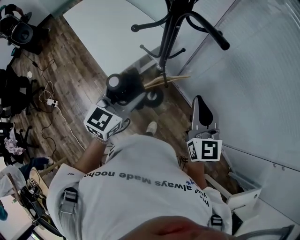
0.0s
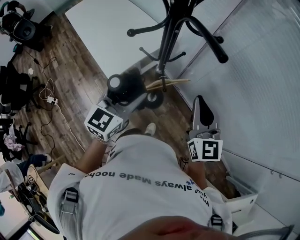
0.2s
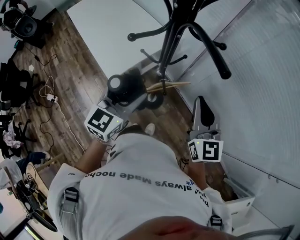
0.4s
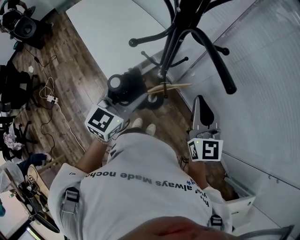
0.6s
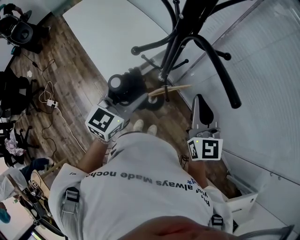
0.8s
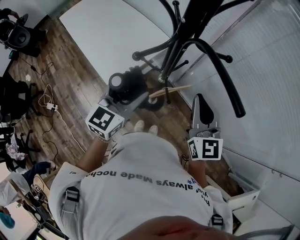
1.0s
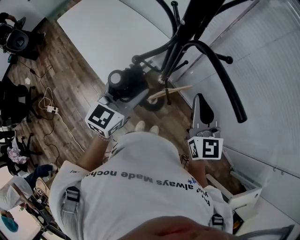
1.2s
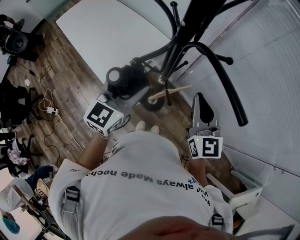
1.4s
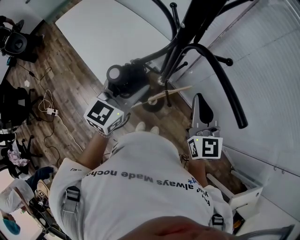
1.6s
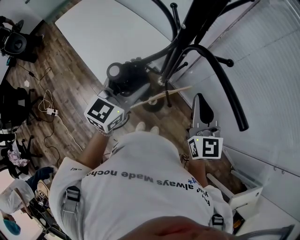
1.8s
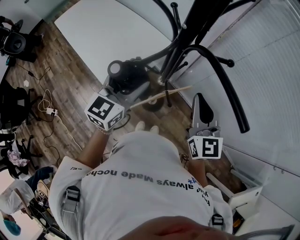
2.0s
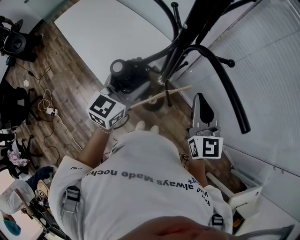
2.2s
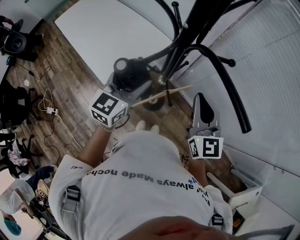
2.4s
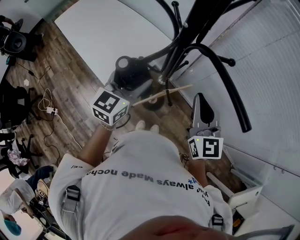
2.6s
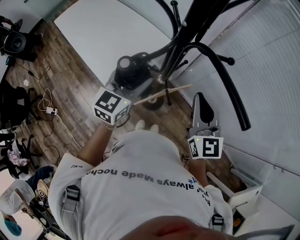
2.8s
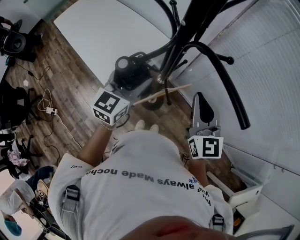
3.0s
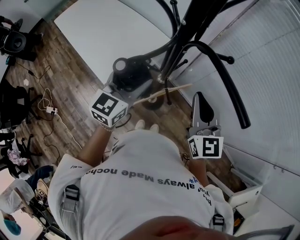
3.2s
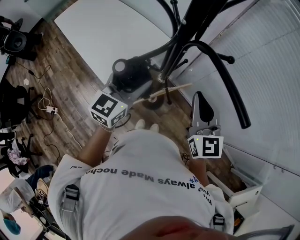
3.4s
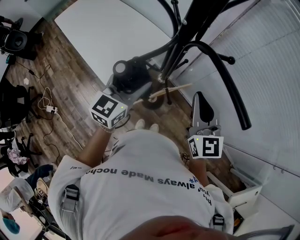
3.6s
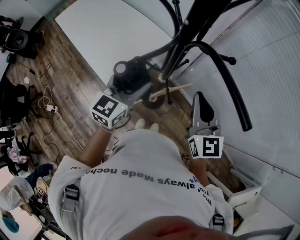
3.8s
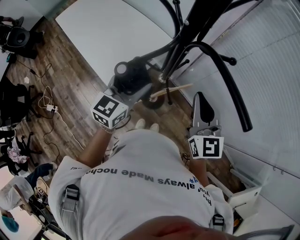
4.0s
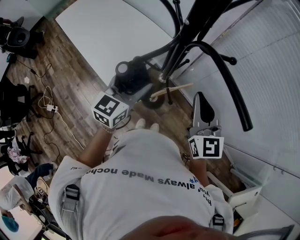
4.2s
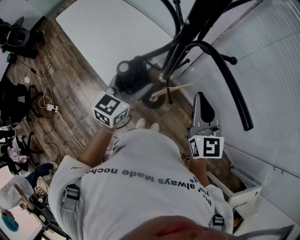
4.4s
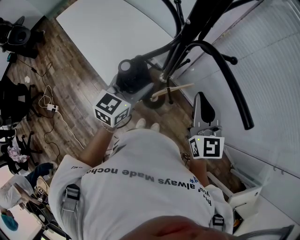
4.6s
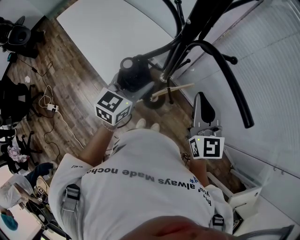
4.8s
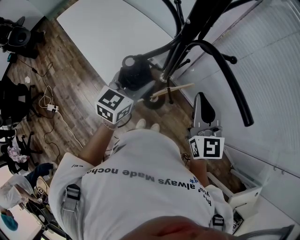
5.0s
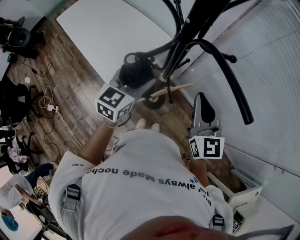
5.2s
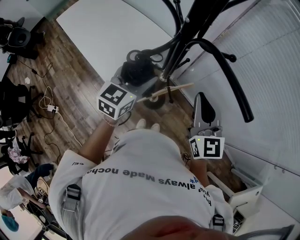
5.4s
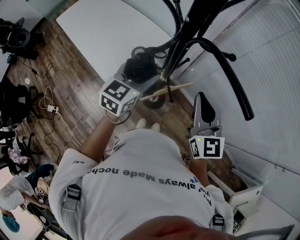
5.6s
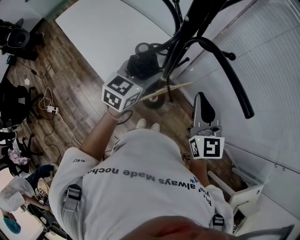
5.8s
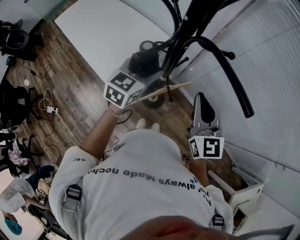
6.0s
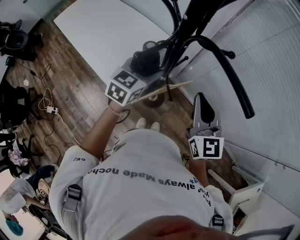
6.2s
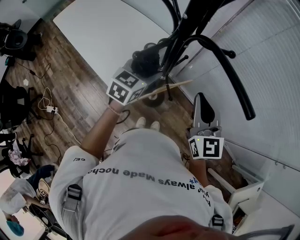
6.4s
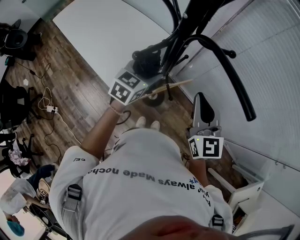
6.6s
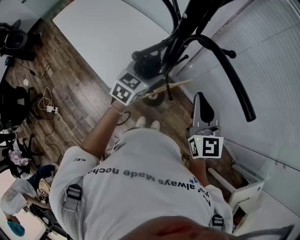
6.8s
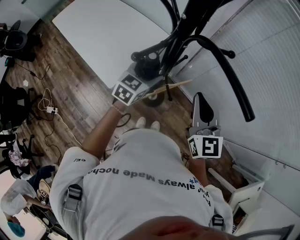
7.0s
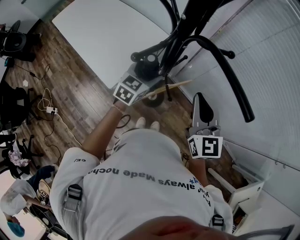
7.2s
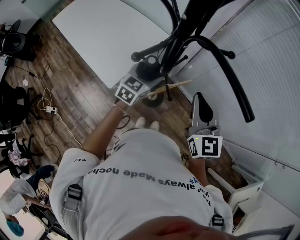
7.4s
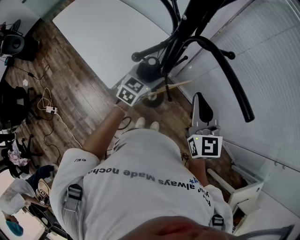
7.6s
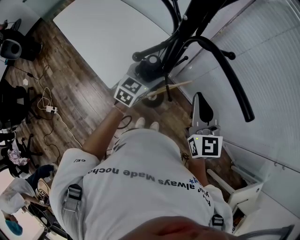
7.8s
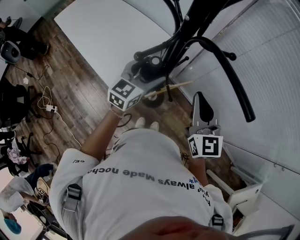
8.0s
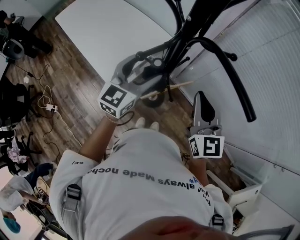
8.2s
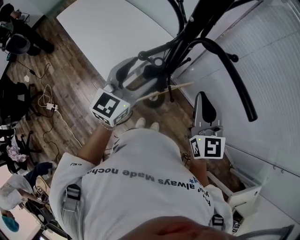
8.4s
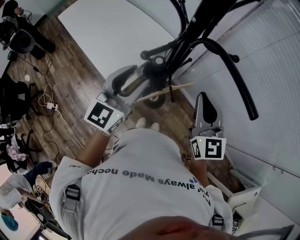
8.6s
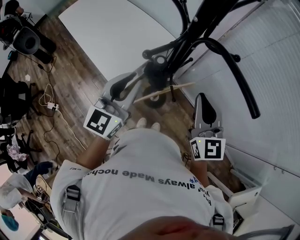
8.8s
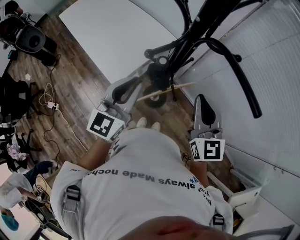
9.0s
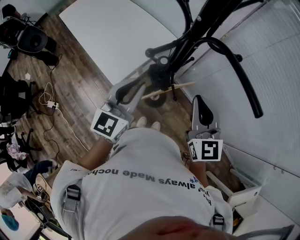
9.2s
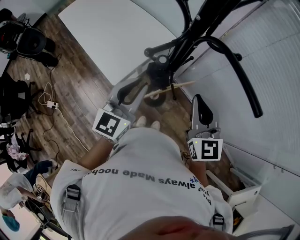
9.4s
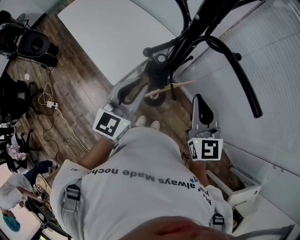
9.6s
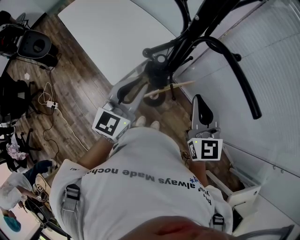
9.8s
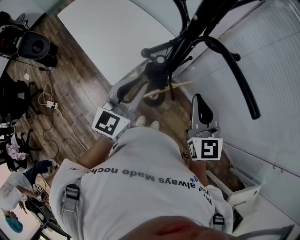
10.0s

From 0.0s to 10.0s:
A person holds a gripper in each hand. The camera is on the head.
From 0.0s to 1.4s: The grippers both shift forward and to the left by some 15 cm.
From 1.4s to 4.2s: The grippers make only small movements.
From 4.2s to 5.8s: There are only small adjustments of the grippers.
From 5.8s to 7.2s: The left gripper travels downward by roughly 10 cm.
From 7.2s to 8.6s: The left gripper goes roughly 20 cm upward and backward, and rotates roughly 30 degrees.
From 8.6s to 10.0s: There are only small adjustments of the grippers.

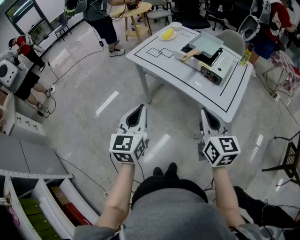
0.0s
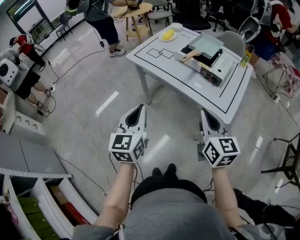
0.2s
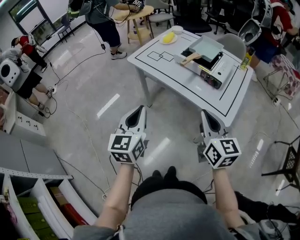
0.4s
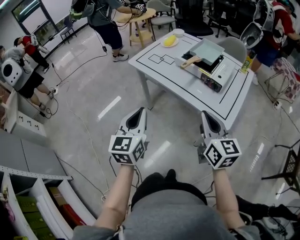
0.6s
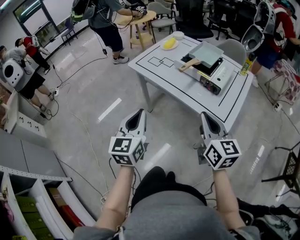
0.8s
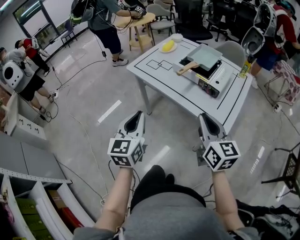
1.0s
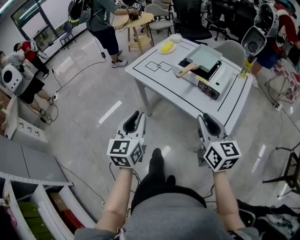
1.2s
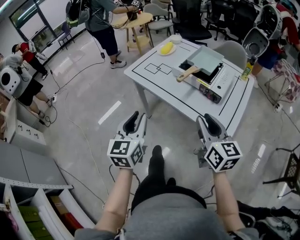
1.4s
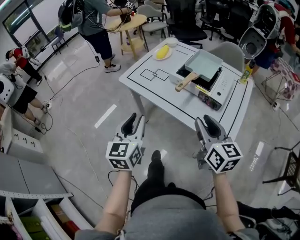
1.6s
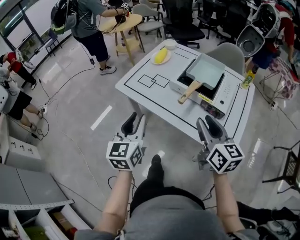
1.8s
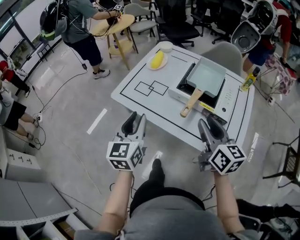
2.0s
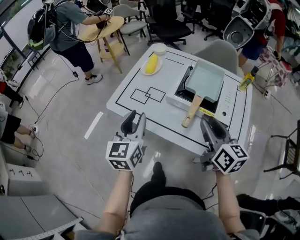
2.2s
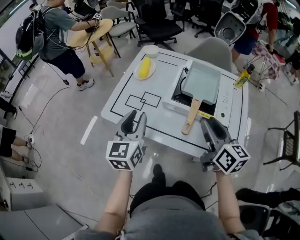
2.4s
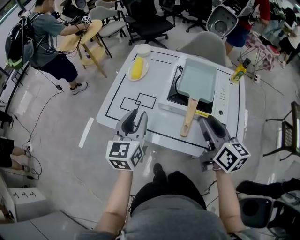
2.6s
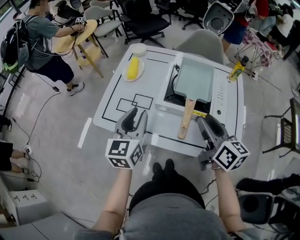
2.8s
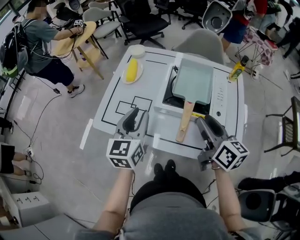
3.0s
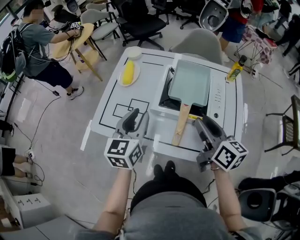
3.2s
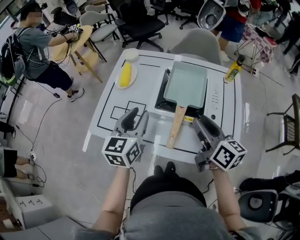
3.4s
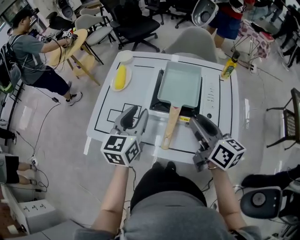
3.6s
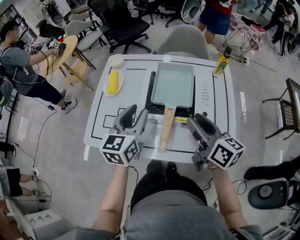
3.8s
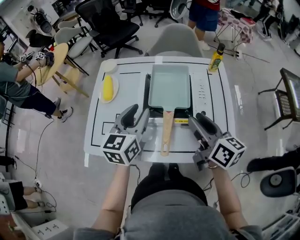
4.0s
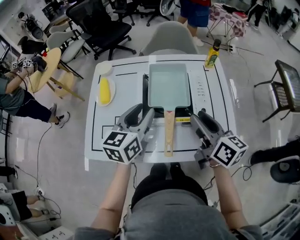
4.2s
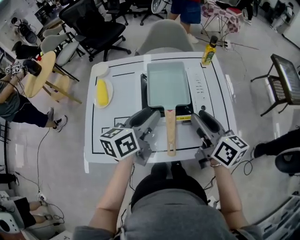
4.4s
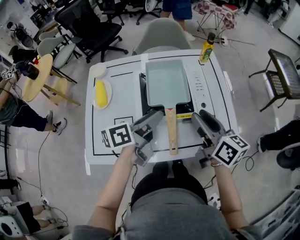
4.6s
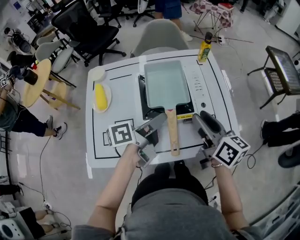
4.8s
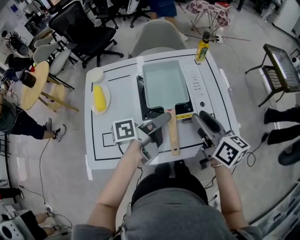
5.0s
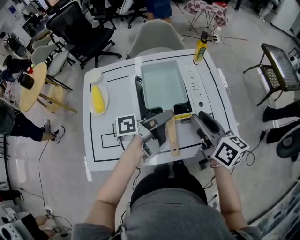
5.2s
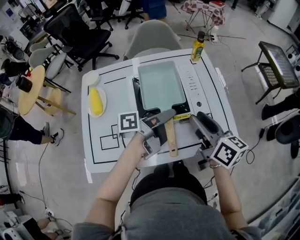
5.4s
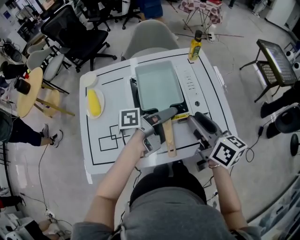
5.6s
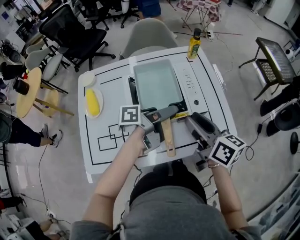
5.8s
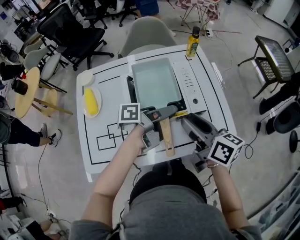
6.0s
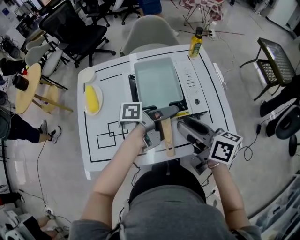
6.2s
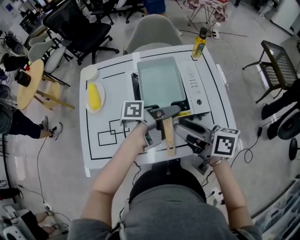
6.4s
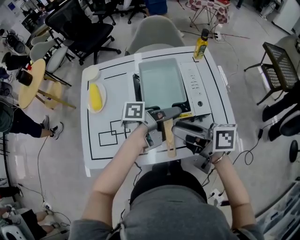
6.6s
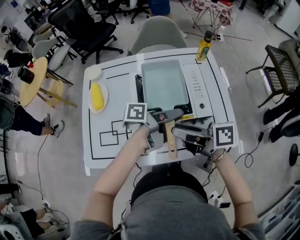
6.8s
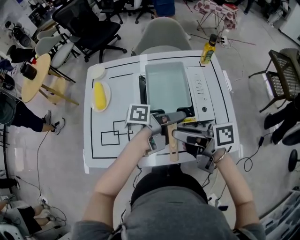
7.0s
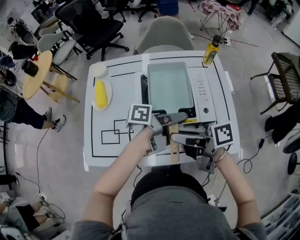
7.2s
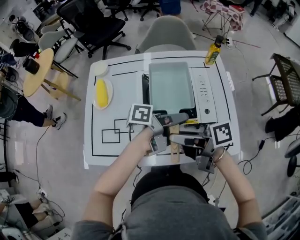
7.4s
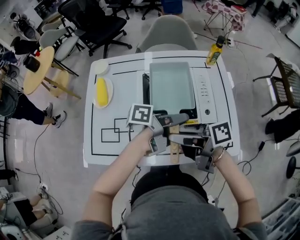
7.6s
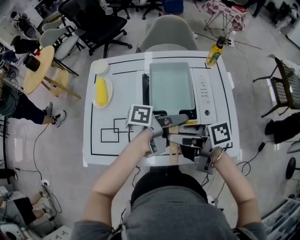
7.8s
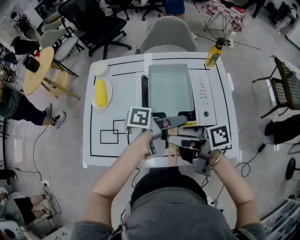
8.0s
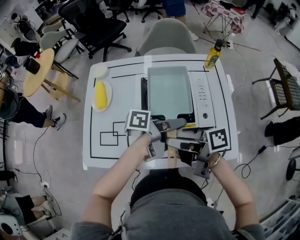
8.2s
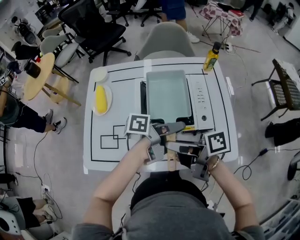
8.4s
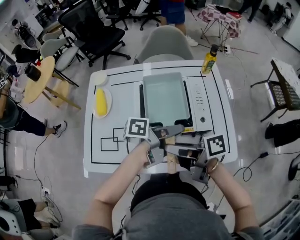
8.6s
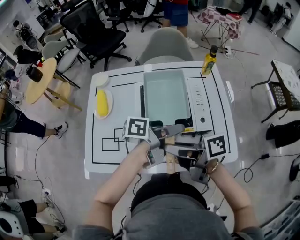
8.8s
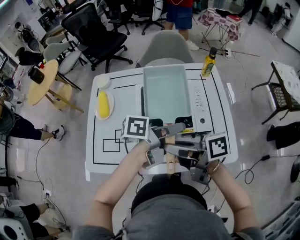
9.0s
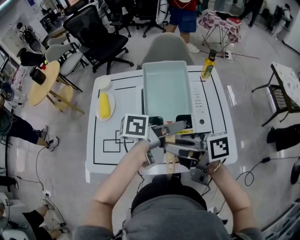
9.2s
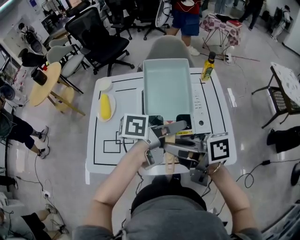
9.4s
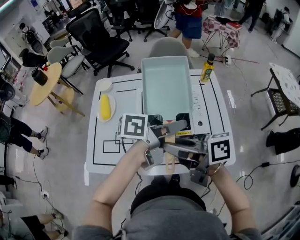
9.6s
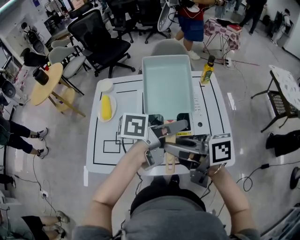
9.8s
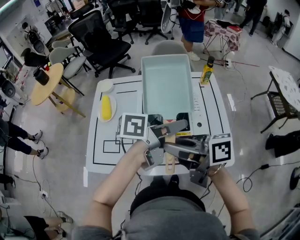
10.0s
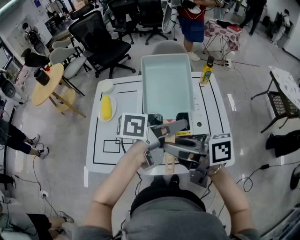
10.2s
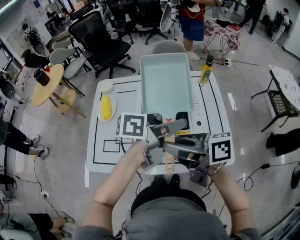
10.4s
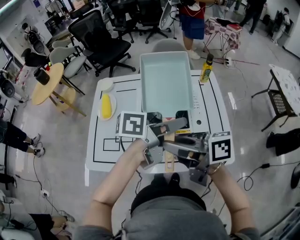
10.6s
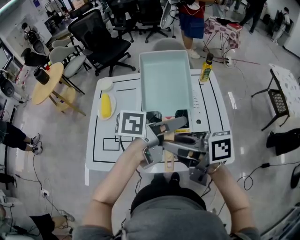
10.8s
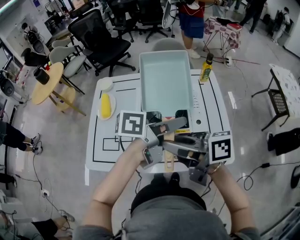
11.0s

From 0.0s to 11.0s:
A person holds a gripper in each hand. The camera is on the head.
From 0.0s to 1.6s: Both grippers move forward, some 10 cm. The right gripper opens up; the left gripper opens up.
From 1.6s to 3.2s: The grippers both shift forward by roughly 25 cm. The right gripper turns by approximately 20 degrees. The left gripper swivels roughly 30 degrees.
From 3.2s to 4.8s: The right gripper turns by about 20 degrees, while the left gripper moves about 15 cm, and rotates approximately 70 degrees.
From 4.8s to 6.2s: The left gripper moves to the right, some 5 cm, and swivels about 30 degrees.
From 6.2s to 7.8s: The right gripper changes place by roughly 10 cm, and rotates roughly 50 degrees.
From 7.8s to 9.4s: Both grippers travel together upward, some 5 cm.
From 9.4s to 11.0s: The grippers stay close to where they were, moving slightly.

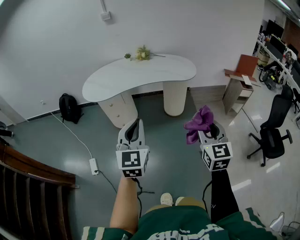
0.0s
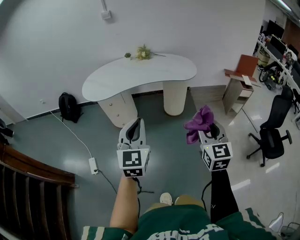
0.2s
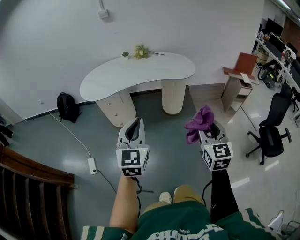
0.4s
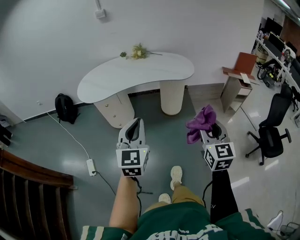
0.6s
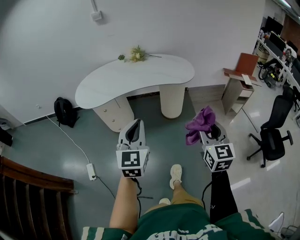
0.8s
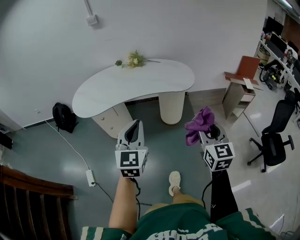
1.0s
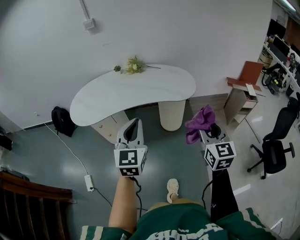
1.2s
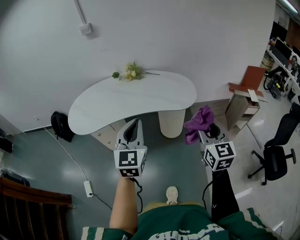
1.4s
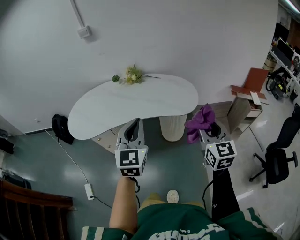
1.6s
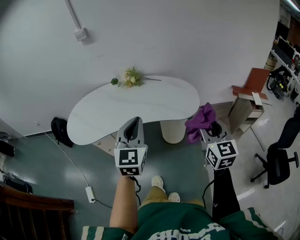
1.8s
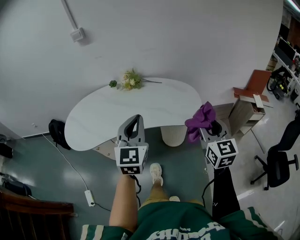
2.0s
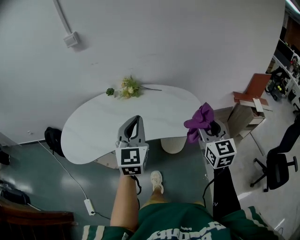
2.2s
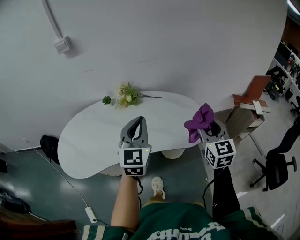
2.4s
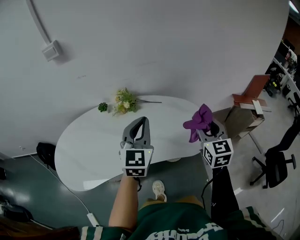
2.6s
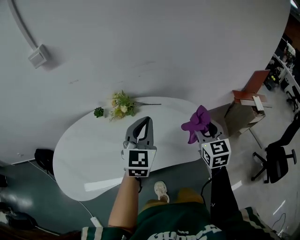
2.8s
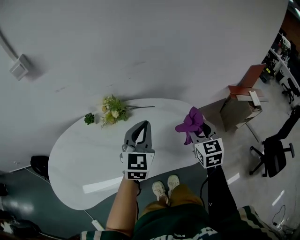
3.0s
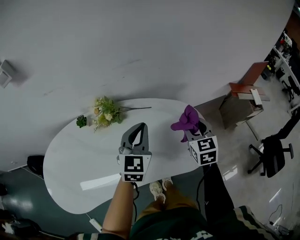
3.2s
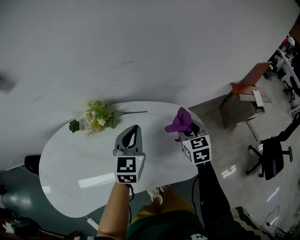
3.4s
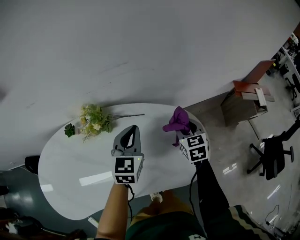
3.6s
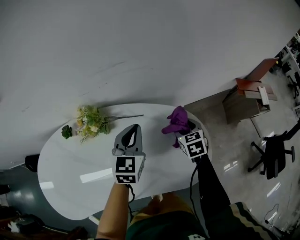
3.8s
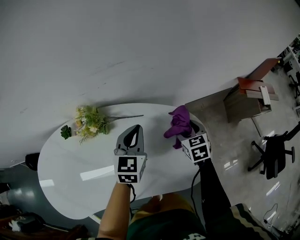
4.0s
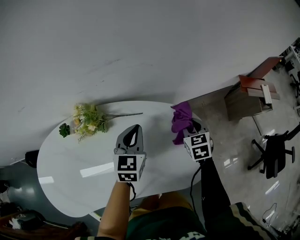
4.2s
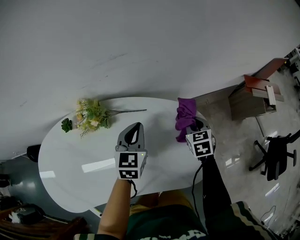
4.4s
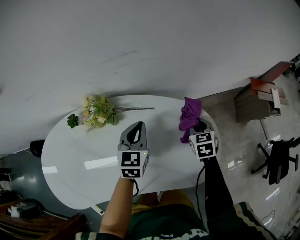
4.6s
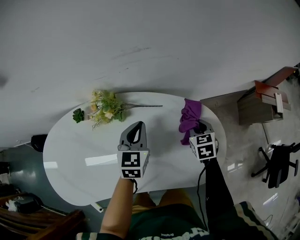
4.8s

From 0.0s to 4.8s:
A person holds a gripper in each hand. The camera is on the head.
From 0.0s to 1.6s: The grippers both shift forward by some 35 cm.
From 1.6s to 3.2s: The pair of grippers is taken forward, roughly 50 cm. The right gripper changes its angle by approximately 20 degrees, while the left gripper swivels approximately 20 degrees.
From 3.2s to 4.8s: The two grippers go approximately 20 cm downward and forward. The right gripper swivels roughly 20 degrees, and closes up.
